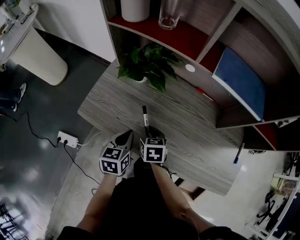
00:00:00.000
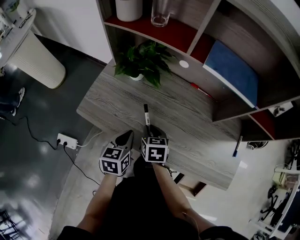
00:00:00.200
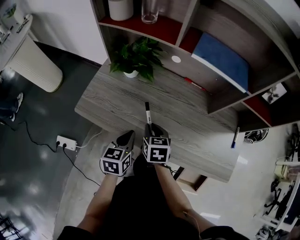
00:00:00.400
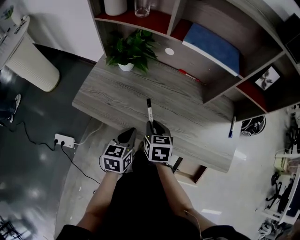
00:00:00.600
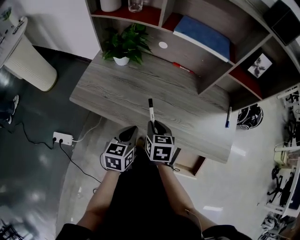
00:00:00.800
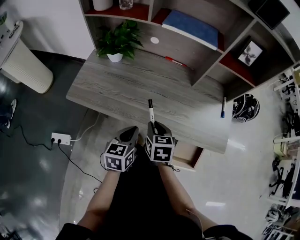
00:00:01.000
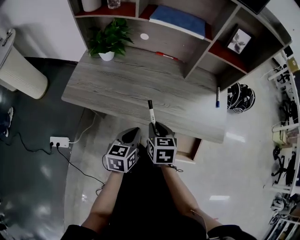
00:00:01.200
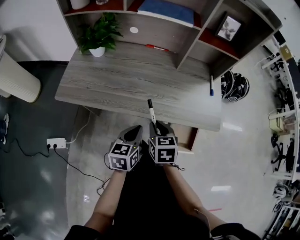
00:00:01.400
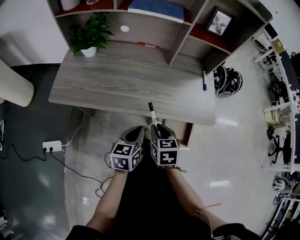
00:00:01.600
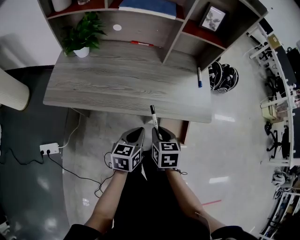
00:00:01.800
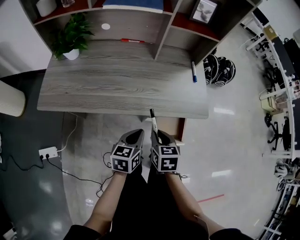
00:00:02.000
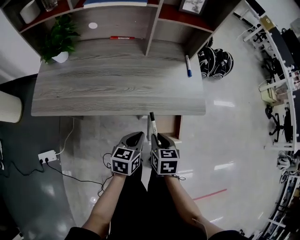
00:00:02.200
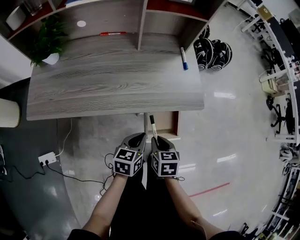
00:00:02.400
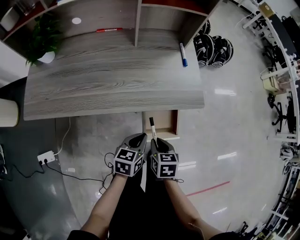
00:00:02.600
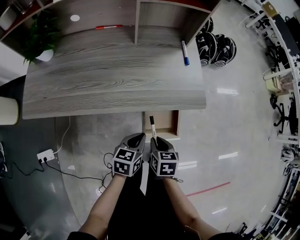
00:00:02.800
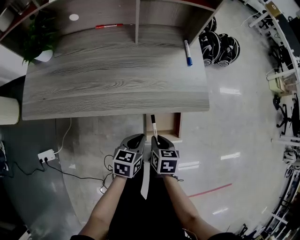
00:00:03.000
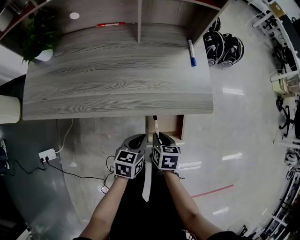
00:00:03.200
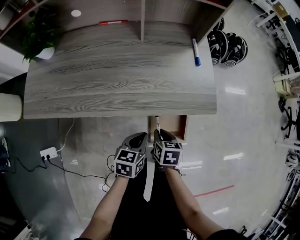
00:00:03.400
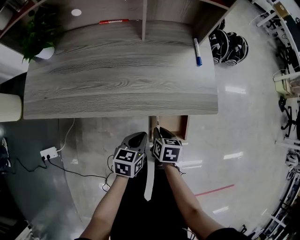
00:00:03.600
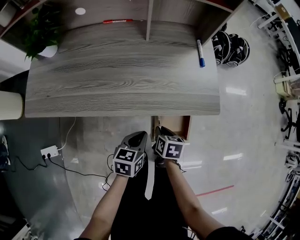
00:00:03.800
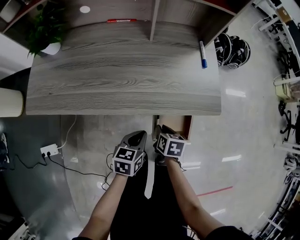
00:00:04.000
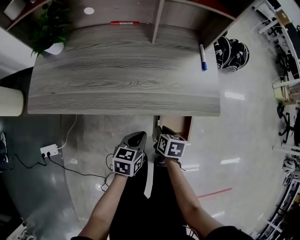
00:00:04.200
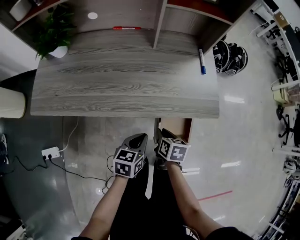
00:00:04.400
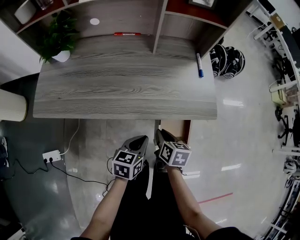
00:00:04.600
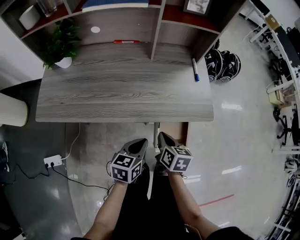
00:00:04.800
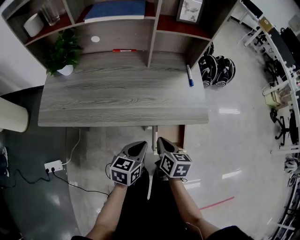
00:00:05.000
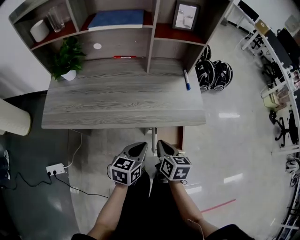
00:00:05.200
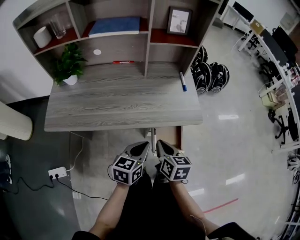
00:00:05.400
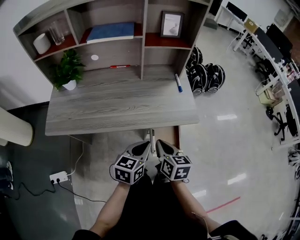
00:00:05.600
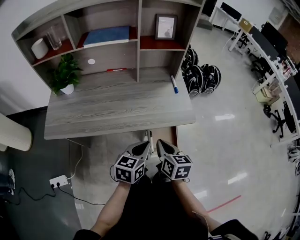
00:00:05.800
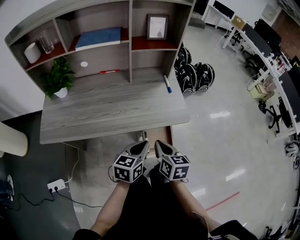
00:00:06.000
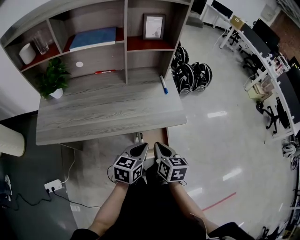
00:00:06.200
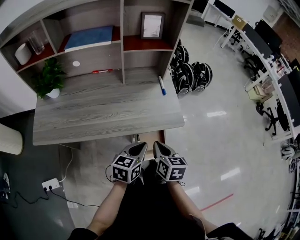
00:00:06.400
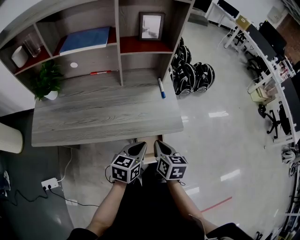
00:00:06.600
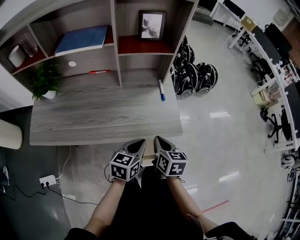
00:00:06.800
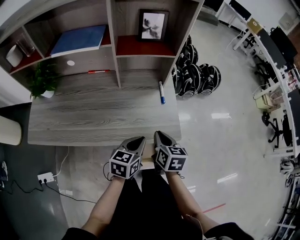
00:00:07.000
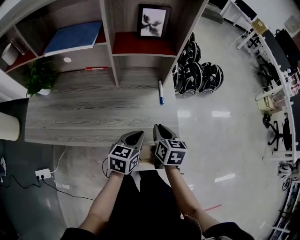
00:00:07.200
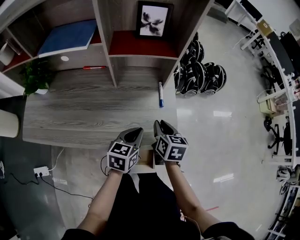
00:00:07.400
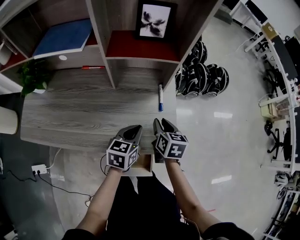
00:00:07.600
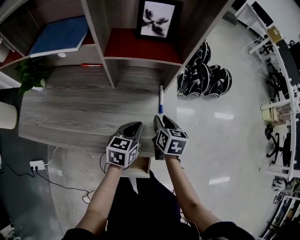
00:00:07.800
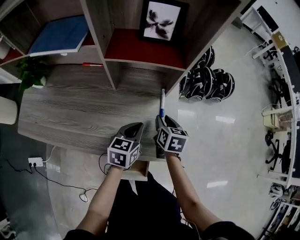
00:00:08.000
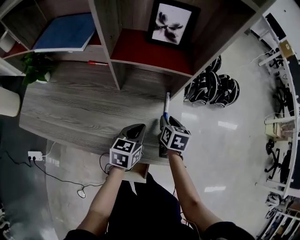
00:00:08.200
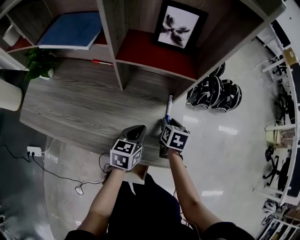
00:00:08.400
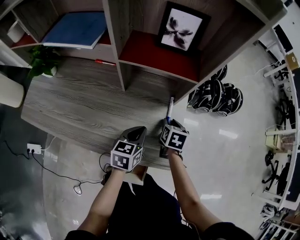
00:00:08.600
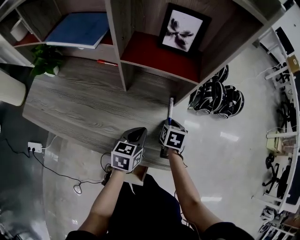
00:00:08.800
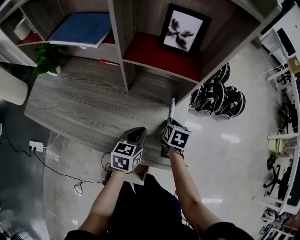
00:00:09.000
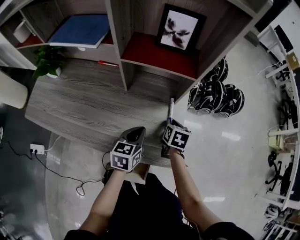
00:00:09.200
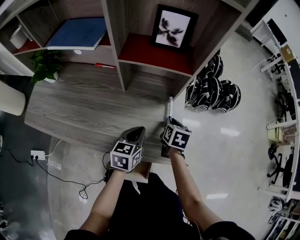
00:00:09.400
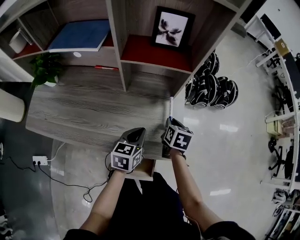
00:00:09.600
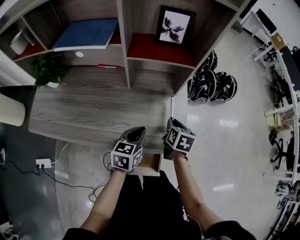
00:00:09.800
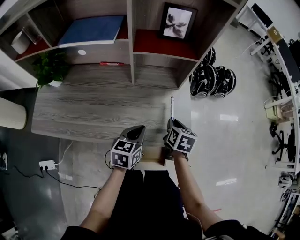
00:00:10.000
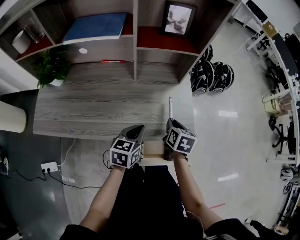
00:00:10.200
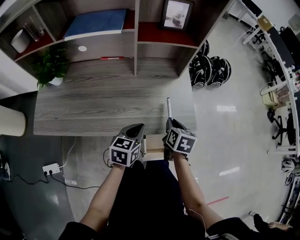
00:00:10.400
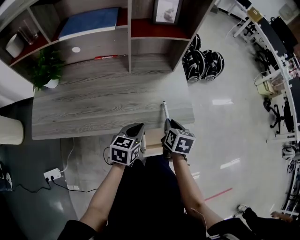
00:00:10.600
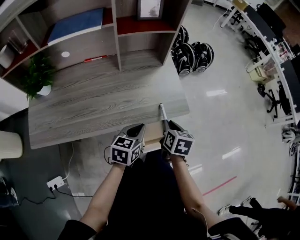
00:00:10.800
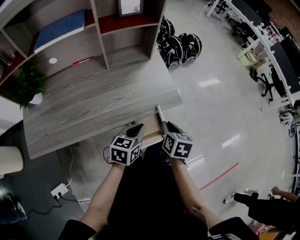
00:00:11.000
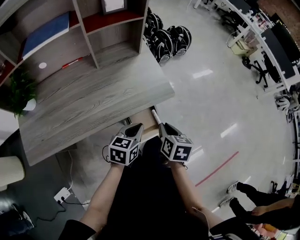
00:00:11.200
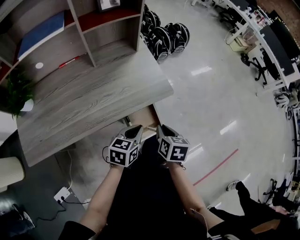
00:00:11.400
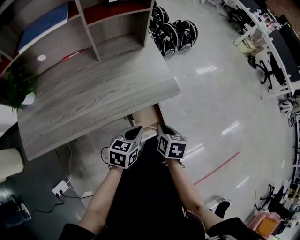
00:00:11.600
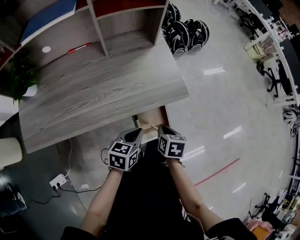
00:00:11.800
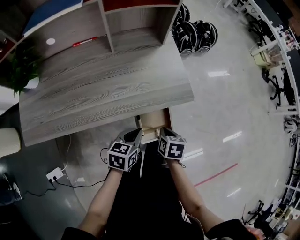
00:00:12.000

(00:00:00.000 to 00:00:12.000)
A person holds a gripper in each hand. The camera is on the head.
00:00:00.000 - 00:00:01.600: The left gripper changes place by about 30 cm, and turns by some 30 degrees; the right gripper moves some 35 cm, and swivels roughly 20 degrees.
00:00:01.600 - 00:00:03.000: The right gripper goes some 20 cm downward and to the right, and turns by some 20 degrees; the left gripper goes approximately 20 cm to the right and downward, and rotates about 20 degrees.
00:00:03.000 - 00:00:04.400: The right gripper changes place by approximately 5 cm, while the left gripper moves about 5 cm.
00:00:04.400 - 00:00:06.000: Both grippers travel together upward, approximately 20 cm. The right gripper swivels approximately 20 degrees, and closes its fingers.
00:00:06.000 - 00:00:07.600: Both grippers travel together forward, roughly 25 cm. The right gripper opens up.
00:00:07.600 - 00:00:09.000: The right gripper travels forward and downward by some 10 cm.
00:00:09.000 - 00:00:10.400: The right gripper shifts about 20 cm backward; the left gripper shifts some 15 cm backward and to the left.
00:00:10.400 - 00:00:12.000: Both grippers move backward, downward and to the right, some 15 cm.

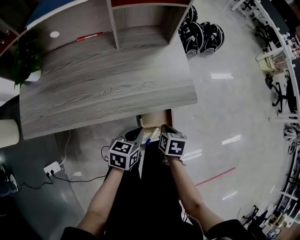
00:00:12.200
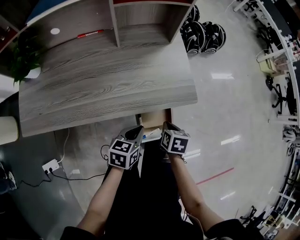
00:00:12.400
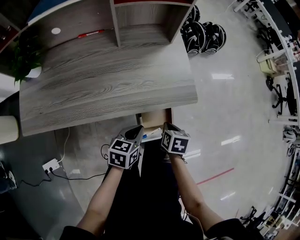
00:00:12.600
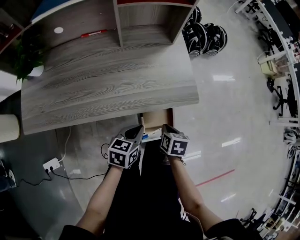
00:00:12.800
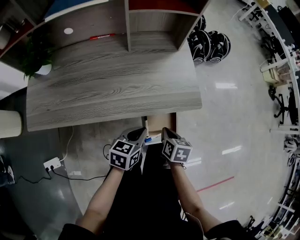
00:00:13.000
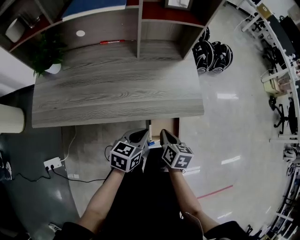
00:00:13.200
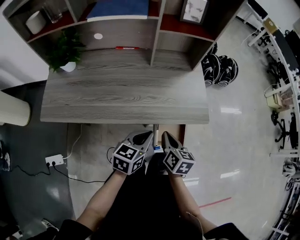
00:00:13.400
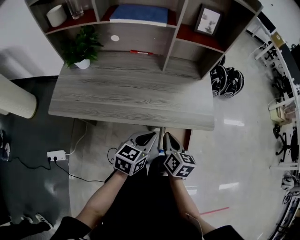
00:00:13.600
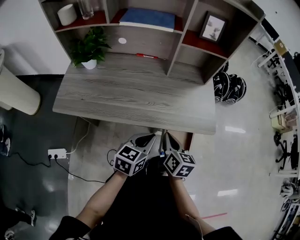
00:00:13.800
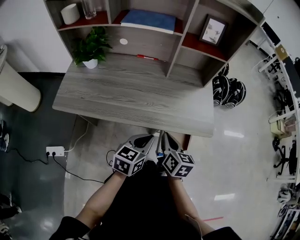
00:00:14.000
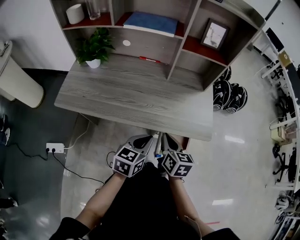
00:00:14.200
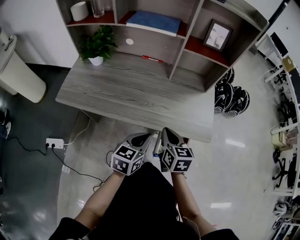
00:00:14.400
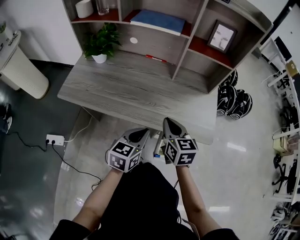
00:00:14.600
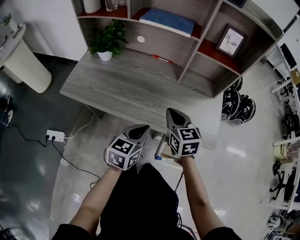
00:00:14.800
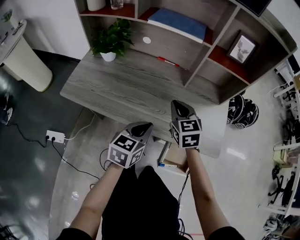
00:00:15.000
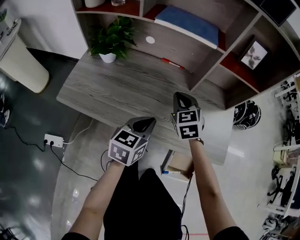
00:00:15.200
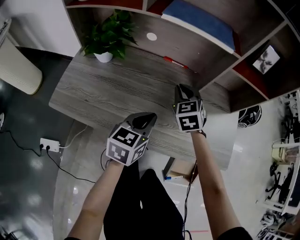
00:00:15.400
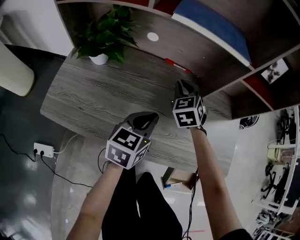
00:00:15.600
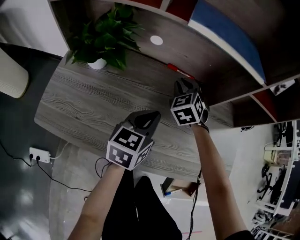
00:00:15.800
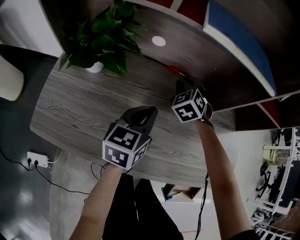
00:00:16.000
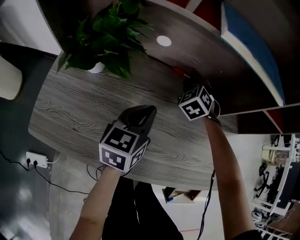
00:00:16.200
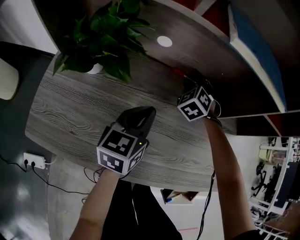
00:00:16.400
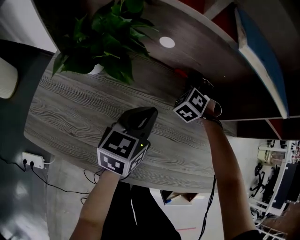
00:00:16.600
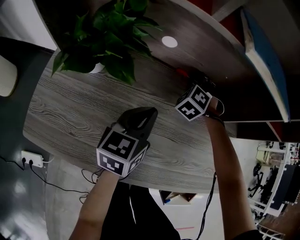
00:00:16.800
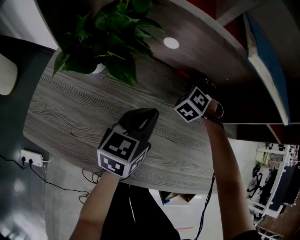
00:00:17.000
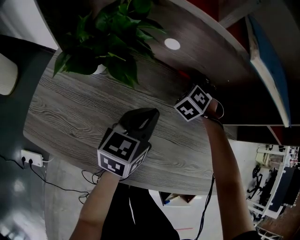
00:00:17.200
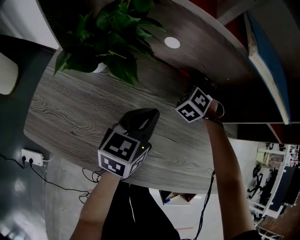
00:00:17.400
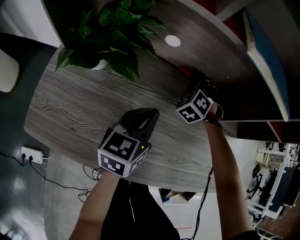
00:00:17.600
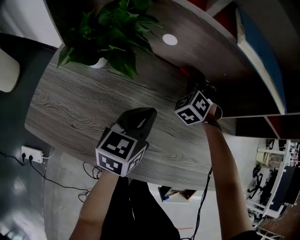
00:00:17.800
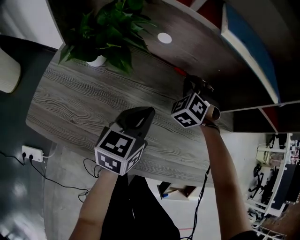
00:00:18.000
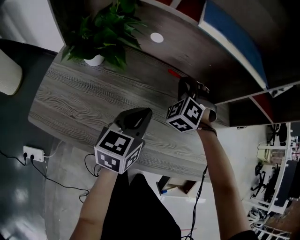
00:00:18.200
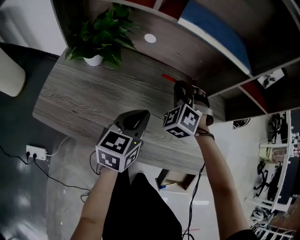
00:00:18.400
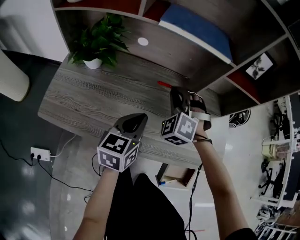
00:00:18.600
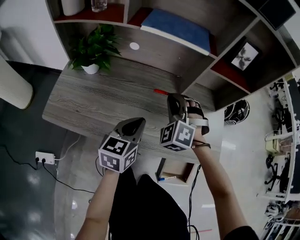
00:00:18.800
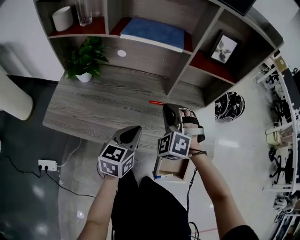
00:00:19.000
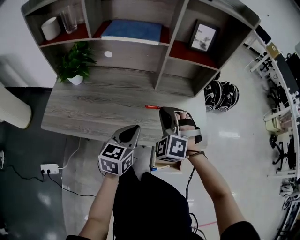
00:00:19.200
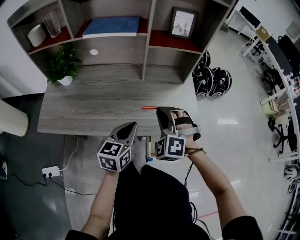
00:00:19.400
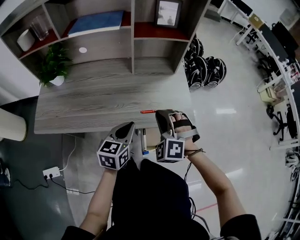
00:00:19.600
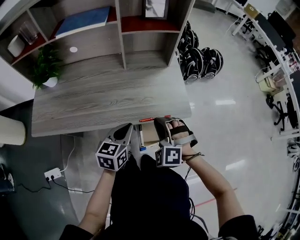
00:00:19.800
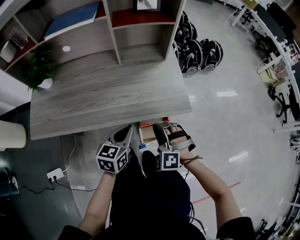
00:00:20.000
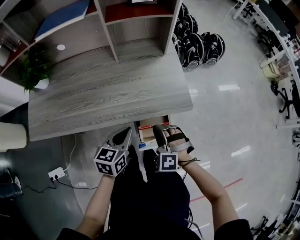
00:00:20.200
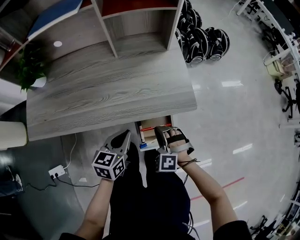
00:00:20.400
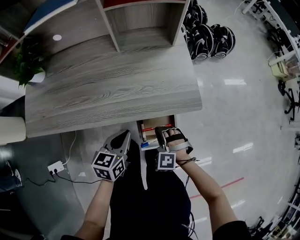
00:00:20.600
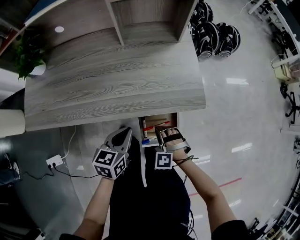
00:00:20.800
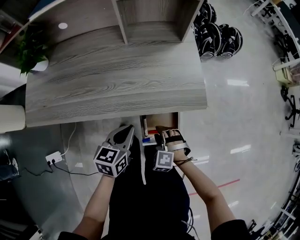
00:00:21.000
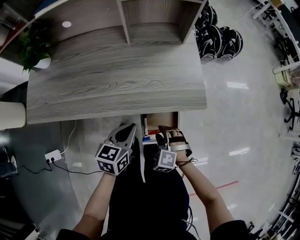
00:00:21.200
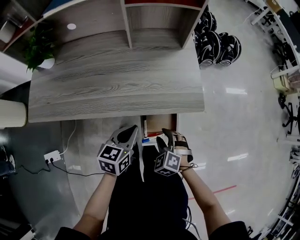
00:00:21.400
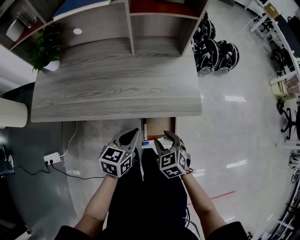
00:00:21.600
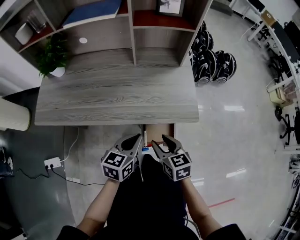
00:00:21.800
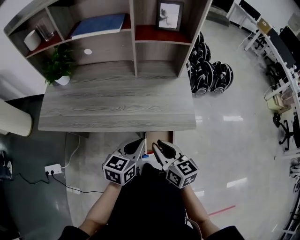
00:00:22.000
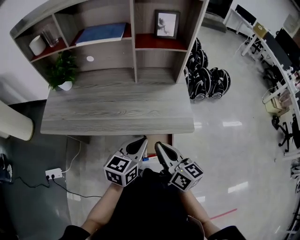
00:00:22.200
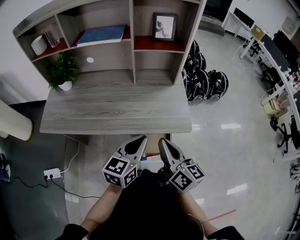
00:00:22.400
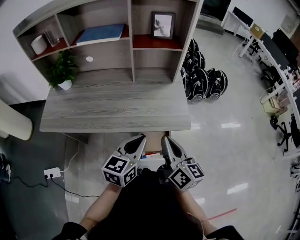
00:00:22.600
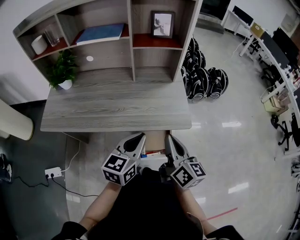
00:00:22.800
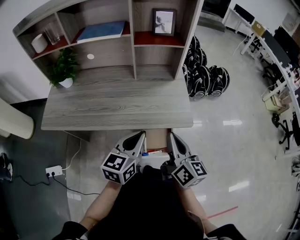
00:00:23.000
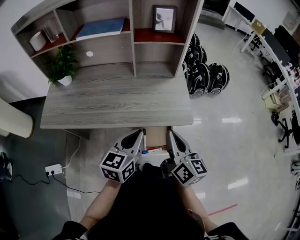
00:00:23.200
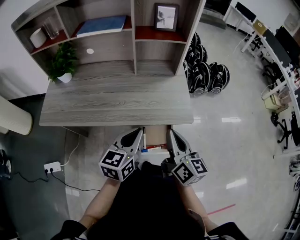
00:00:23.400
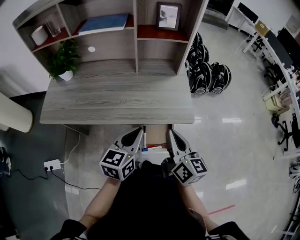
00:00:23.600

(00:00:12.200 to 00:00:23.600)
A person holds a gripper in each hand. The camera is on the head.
00:00:12.200 - 00:00:13.600: The two grippers go some 15 cm upward and to the left. The right gripper points its fingers roughly 30 degrees further upward.
00:00:13.600 - 00:00:15.000: The right gripper moves forward and to the left, approximately 20 cm, and rotates around the line of its fingers by approximately 50 degrees, counterclockwise from behind, while the left gripper shifts about 10 cm to the left and forward.
00:00:15.000 - 00:00:16.400: The left gripper goes some 25 cm forward and to the left. Meanwhile the right gripper travels forward and downward by some 30 cm, and rotates around the line of its fingers by roughly 40 degrees, counterclockwise from behind.
00:00:16.400 - 00:00:17.800: There are only small adjustments of the grippers.
00:00:17.800 - 00:00:19.400: The right gripper shifts about 40 cm backward, to the right and upward. Meanwhile the left gripper heads to the right and backward, covering approximately 30 cm.
00:00:19.400 - 00:00:20.800: The left gripper travels downward and backward by roughly 15 cm, while the right gripper travels downward and backward by about 30 cm, and rotates about 20 degrees.
00:00:20.800 - 00:00:22.200: The left gripper goes some 15 cm upward; the right gripper goes roughly 30 cm upward, rolls clockwise, seen from behind, by approximately 100 degrees, and opens, then closes again.
00:00:22.200 - 00:00:23.600: The right gripper shifts by some 5 cm.
